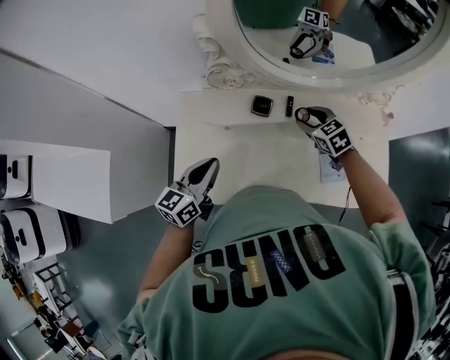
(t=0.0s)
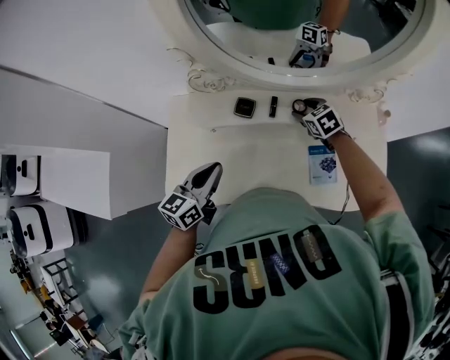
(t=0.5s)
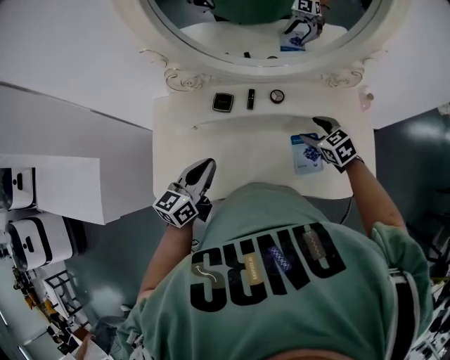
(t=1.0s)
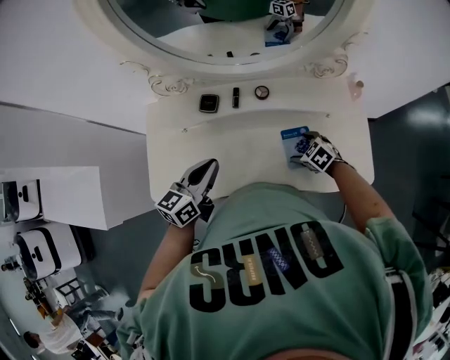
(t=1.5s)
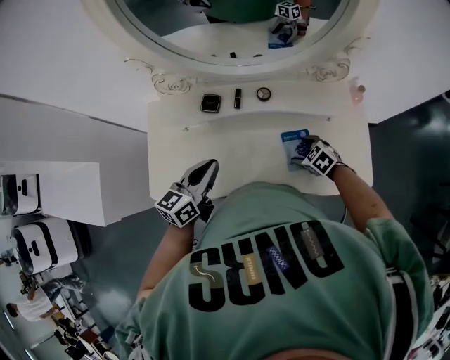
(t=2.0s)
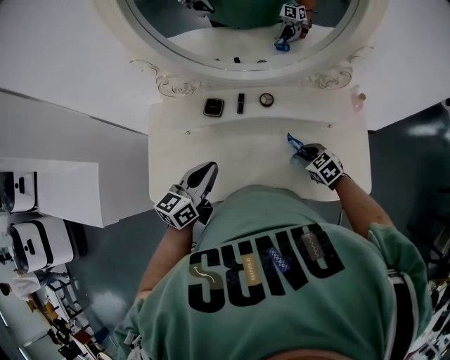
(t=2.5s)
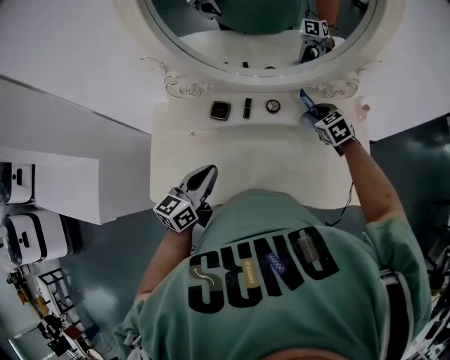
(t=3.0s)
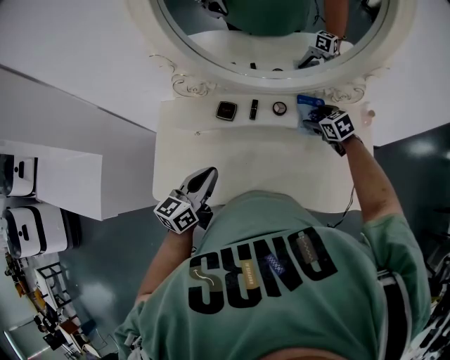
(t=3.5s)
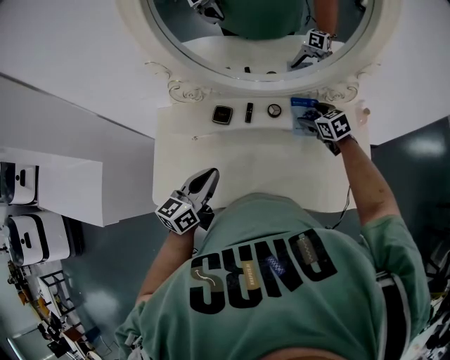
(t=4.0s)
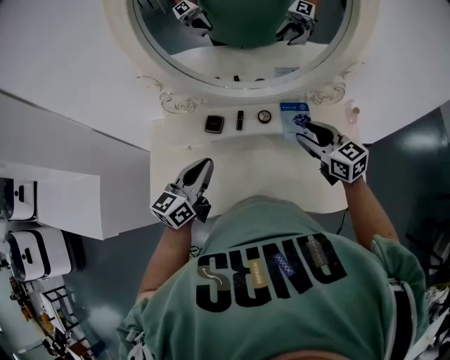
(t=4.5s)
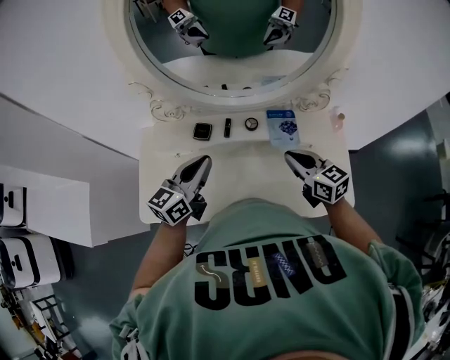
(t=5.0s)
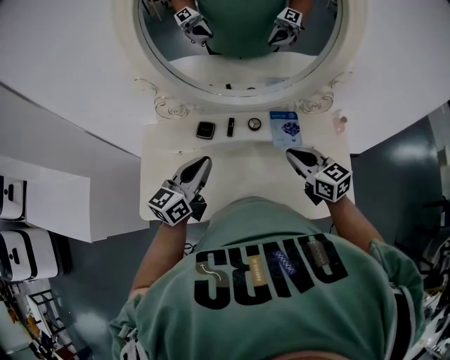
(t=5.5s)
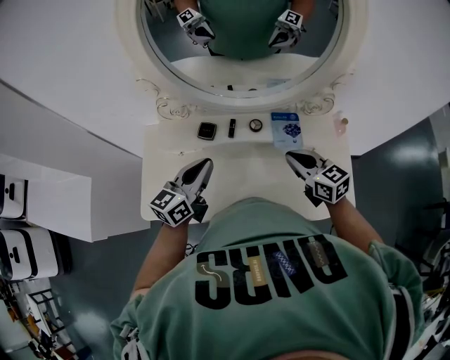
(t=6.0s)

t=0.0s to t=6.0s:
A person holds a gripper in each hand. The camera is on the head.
t=0.0s to t=2.0s: The left gripper is displaced to the right by about 15 cm, while the right gripper travels backward, to the right and downward by about 25 cm, and opens up.
t=2.0s to t=4.0s: The right gripper is displaced forward and upward by about 20 cm, swivels some 20 degrees, and closes, then reopens.
t=4.0s to t=6.0s: The right gripper heads backward and upward, covering approximately 20 cm, turns by about 30 degrees, and closes up. Meanwhile the left gripper is displaced upward by approximately 5 cm.

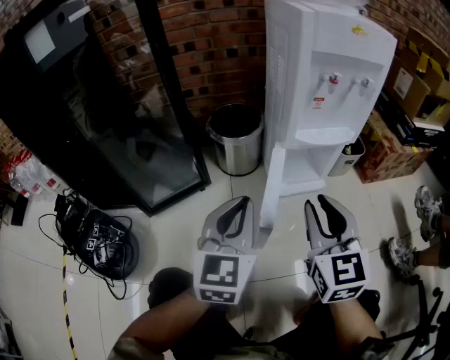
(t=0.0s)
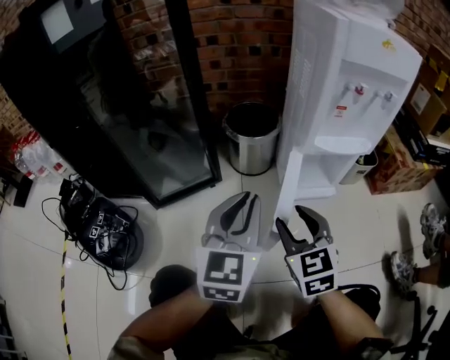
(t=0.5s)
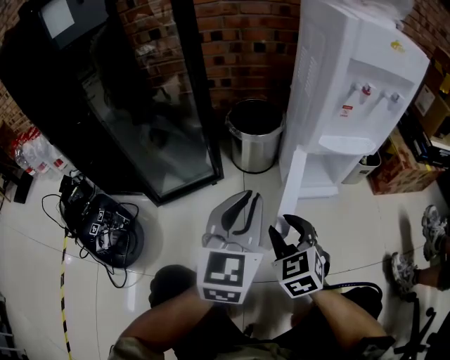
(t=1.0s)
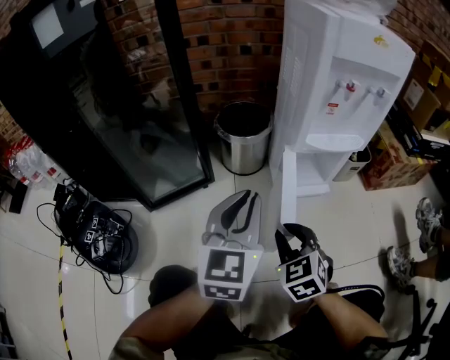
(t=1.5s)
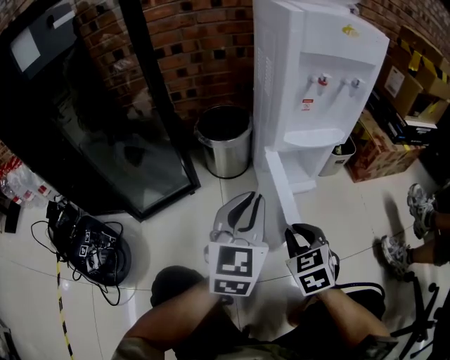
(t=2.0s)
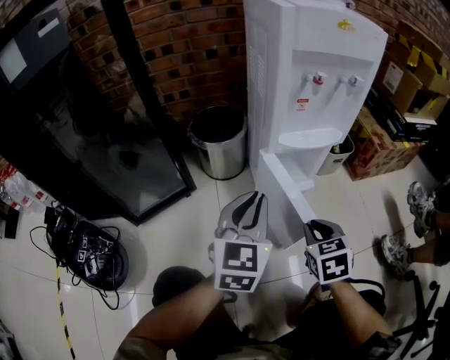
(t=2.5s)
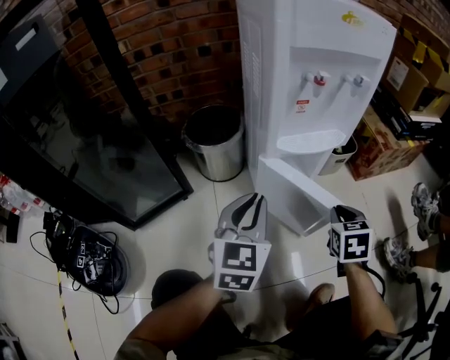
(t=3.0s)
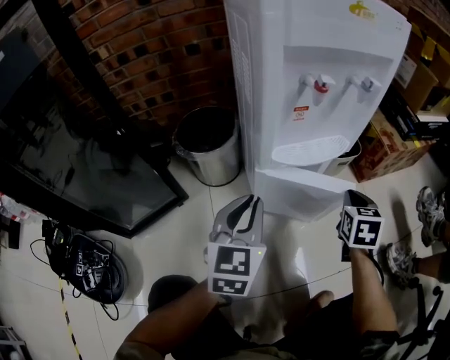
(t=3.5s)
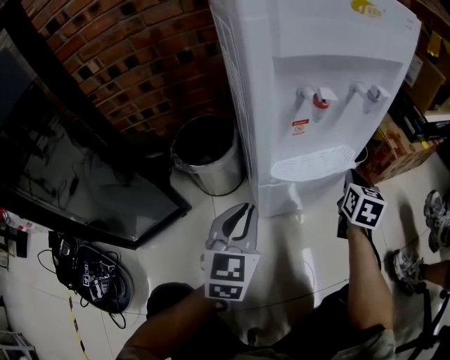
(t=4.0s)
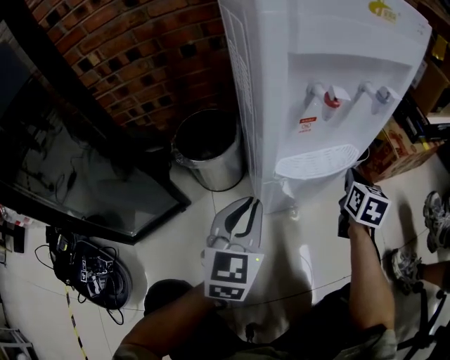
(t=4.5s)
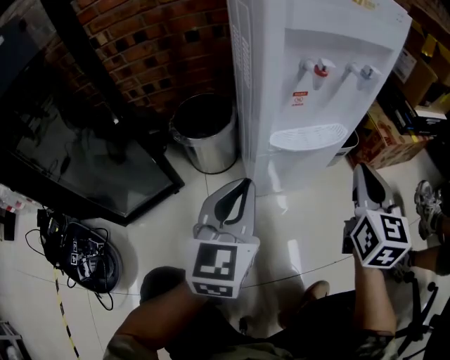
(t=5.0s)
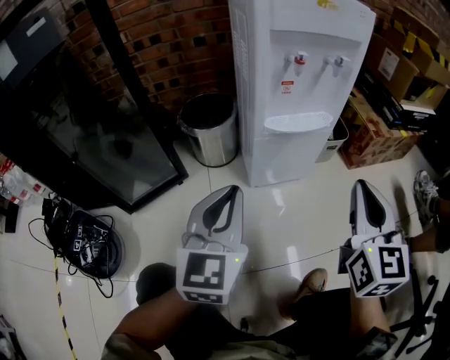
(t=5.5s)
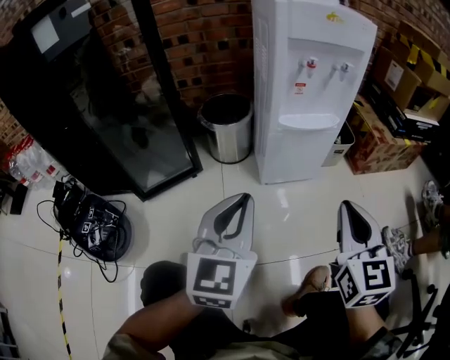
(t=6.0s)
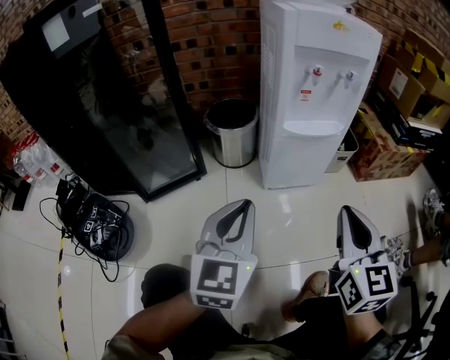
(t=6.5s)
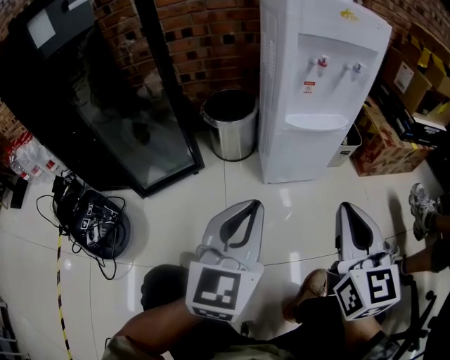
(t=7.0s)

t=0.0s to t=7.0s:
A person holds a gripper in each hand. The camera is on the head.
t=0.0s to t=2.0s: The left gripper moves some 5 cm. Meanwhile the right gripper moves downward, some 15 cm, changes its angle by approximately 30 degrees, and opens, then closes once more.
t=2.0s to t=3.5s: The right gripper heads forward and to the right, covering some 30 cm, and rotates about 30 degrees; the left gripper heads forward and downward, covering some 15 cm.
t=3.5s to t=5.0s: The right gripper travels upward by approximately 15 cm, and swivels roughly 30 degrees; the left gripper travels upward by approximately 5 cm.
t=5.0s to t=7.0s: Both grippers travel together backward, some 20 cm.

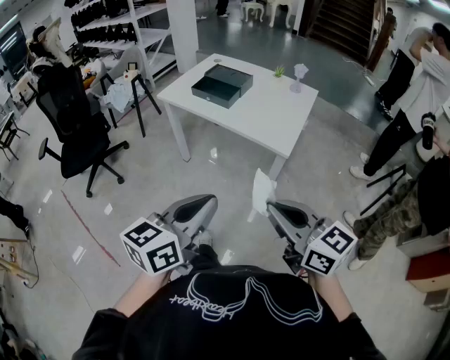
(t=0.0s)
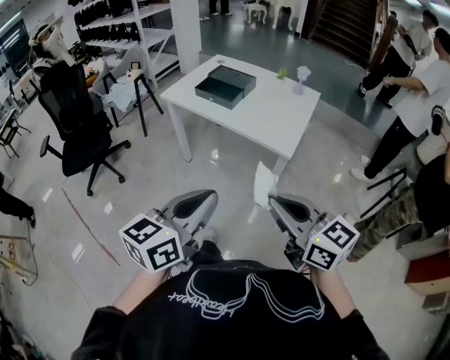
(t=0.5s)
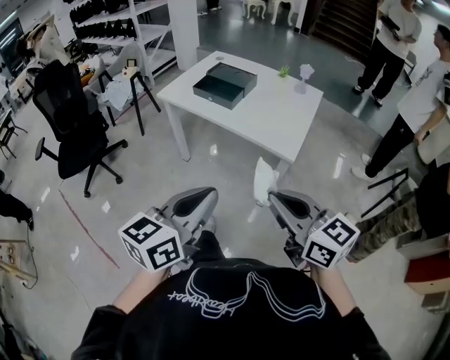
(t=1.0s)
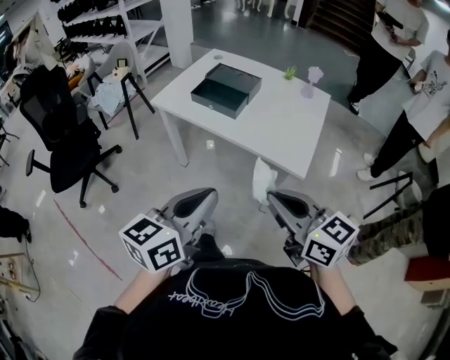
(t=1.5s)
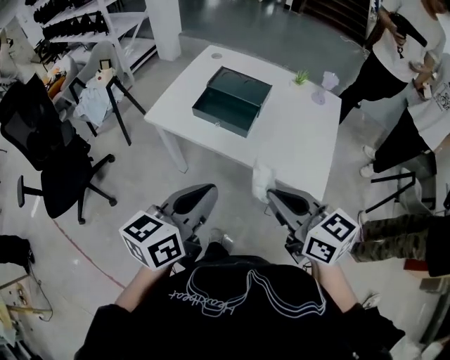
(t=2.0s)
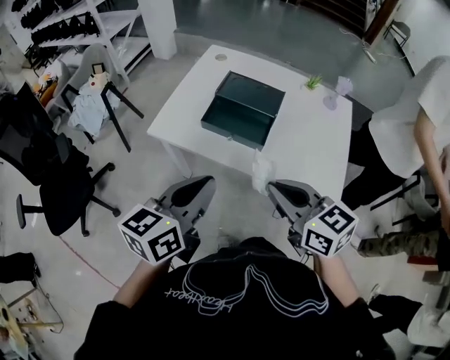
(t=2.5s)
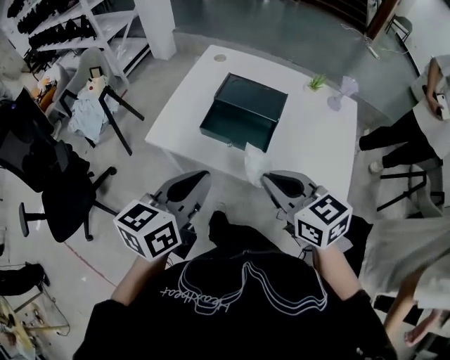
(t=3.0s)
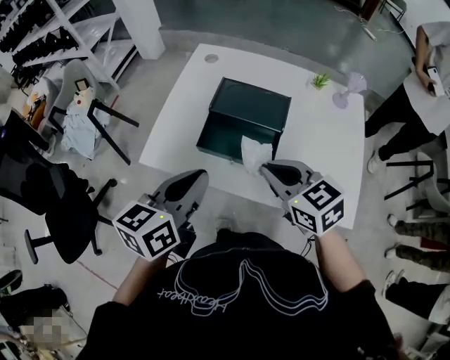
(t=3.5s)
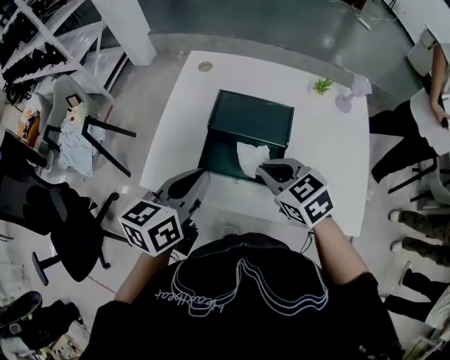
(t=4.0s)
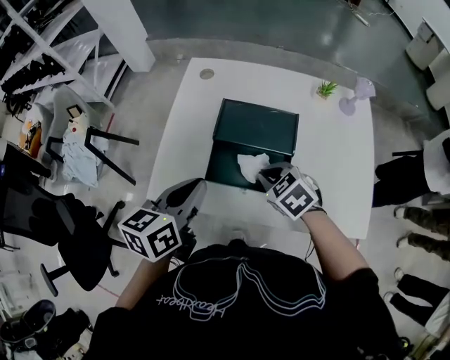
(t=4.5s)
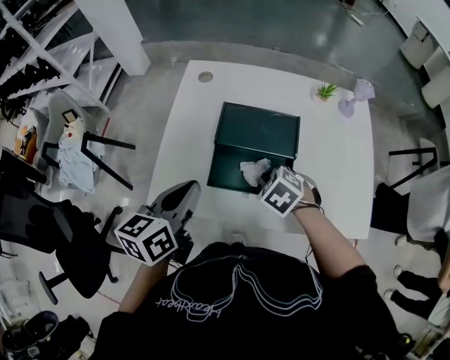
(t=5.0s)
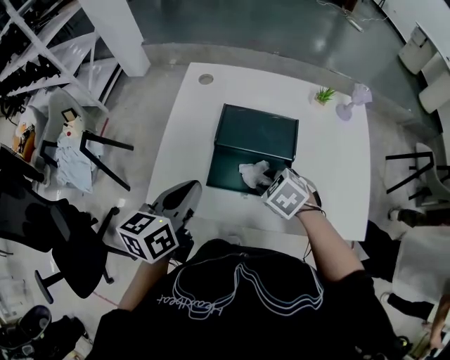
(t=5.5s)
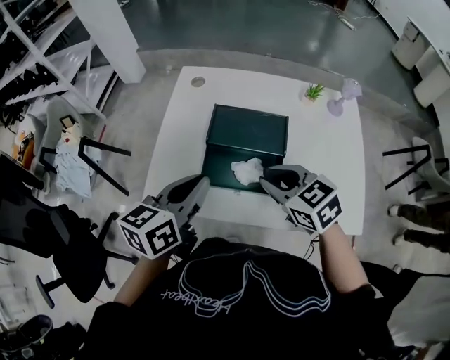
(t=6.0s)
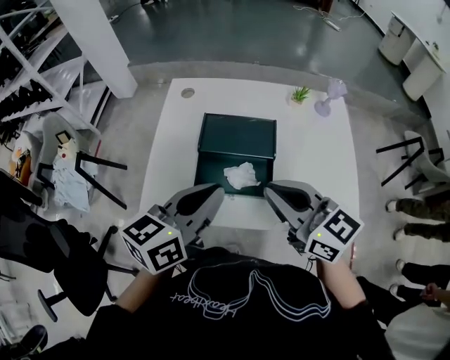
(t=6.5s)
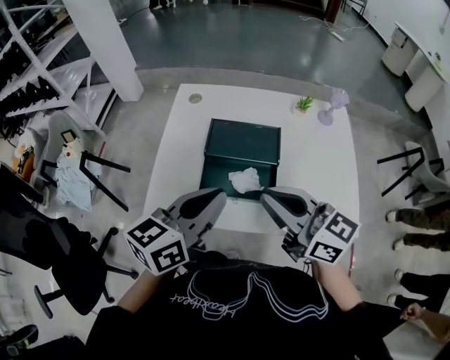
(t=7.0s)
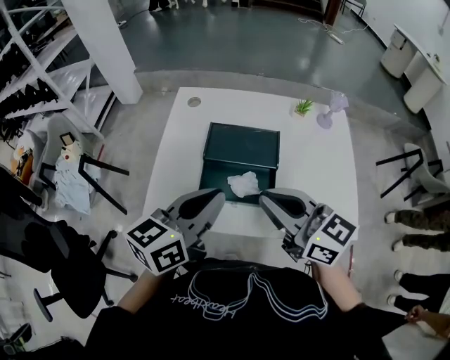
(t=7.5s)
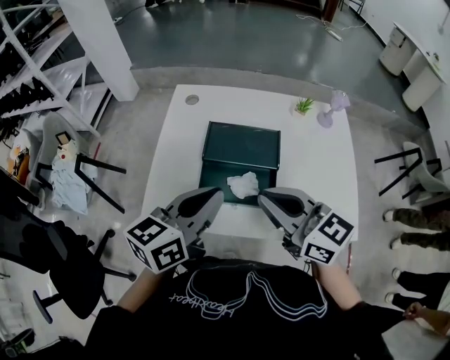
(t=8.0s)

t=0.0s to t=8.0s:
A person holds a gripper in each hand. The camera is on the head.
t=0.0s to t=2.0s: Both grippers move forward, roughly 30 cm.
t=2.0s to t=4.0s: The left gripper goes about 30 cm forward. Meanwhile the right gripper shifts some 35 cm forward and downward, and turns by some 30 degrees.
t=4.0s to t=6.0s: The right gripper reaches roughly 10 cm downward, then returns, and opens.
t=6.0s to t=8.0s: The right gripper travels upward by some 10 cm, rotates about 30 degrees, and closes its fingers. Meanwhile the left gripper ends up approximately 5 cm from where it was.

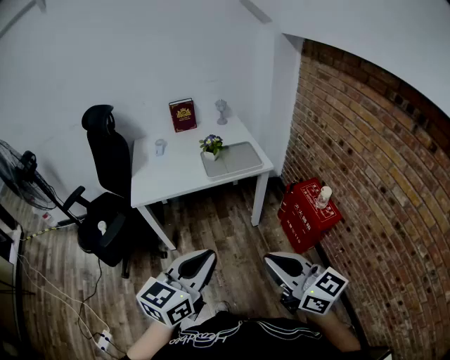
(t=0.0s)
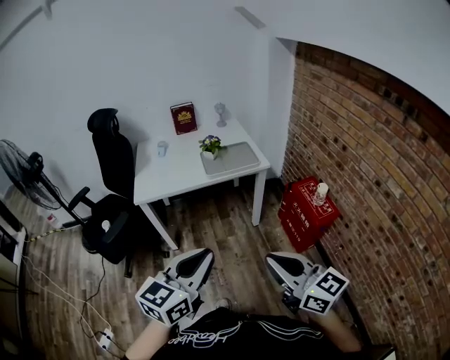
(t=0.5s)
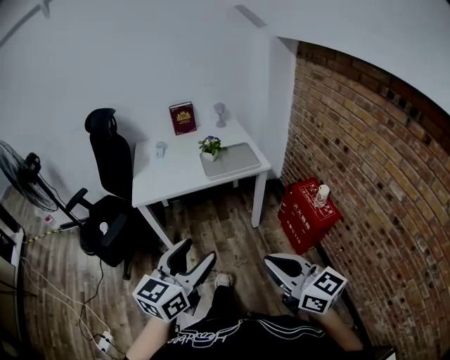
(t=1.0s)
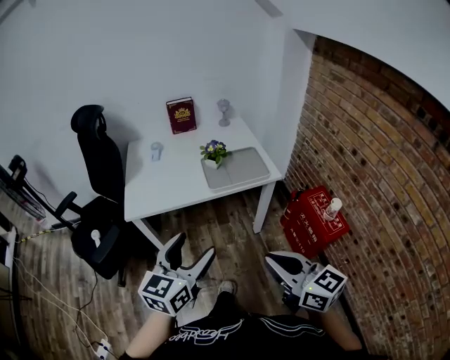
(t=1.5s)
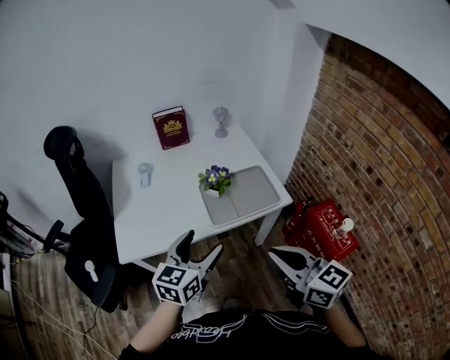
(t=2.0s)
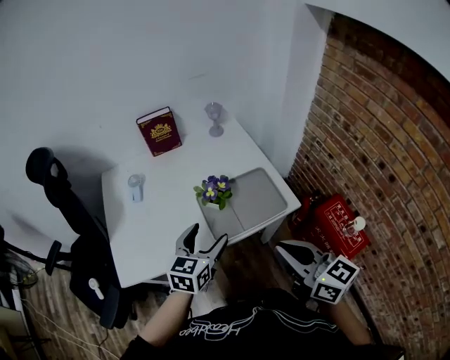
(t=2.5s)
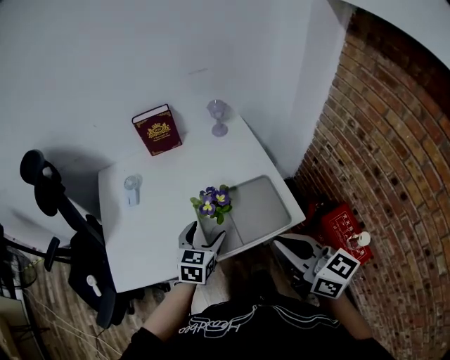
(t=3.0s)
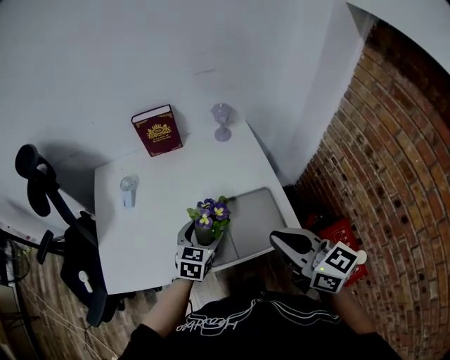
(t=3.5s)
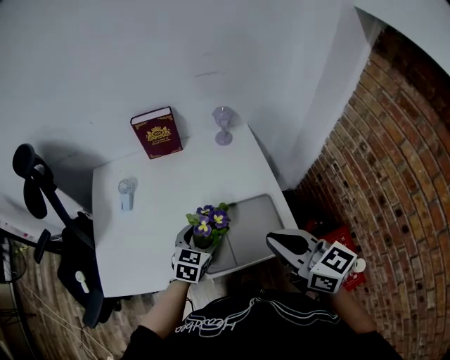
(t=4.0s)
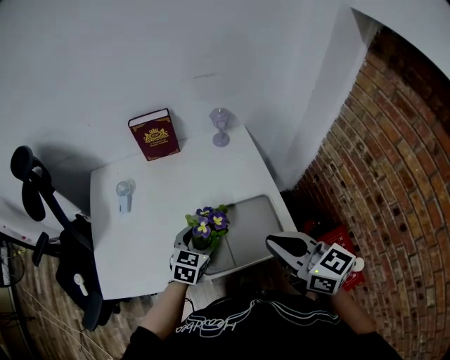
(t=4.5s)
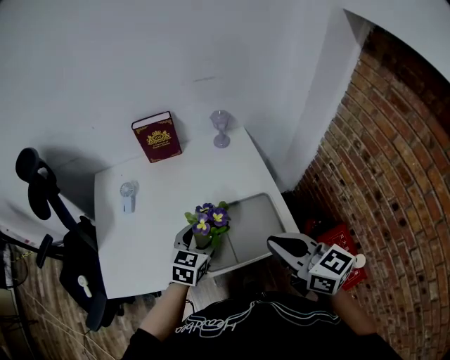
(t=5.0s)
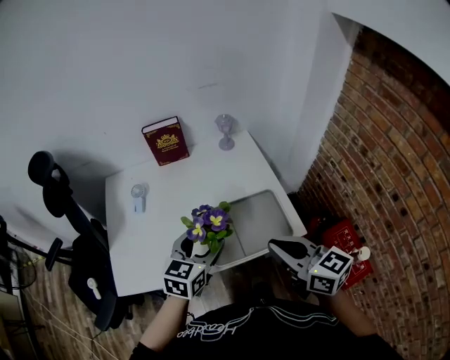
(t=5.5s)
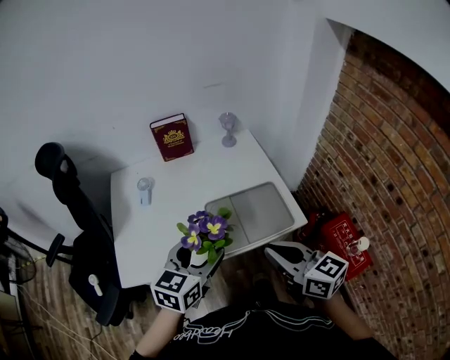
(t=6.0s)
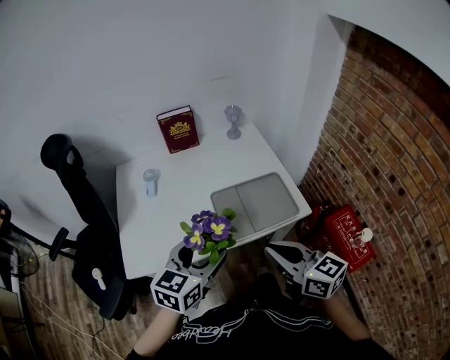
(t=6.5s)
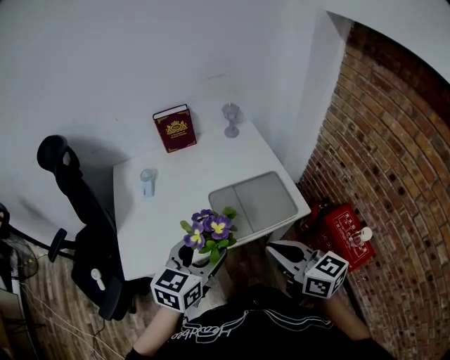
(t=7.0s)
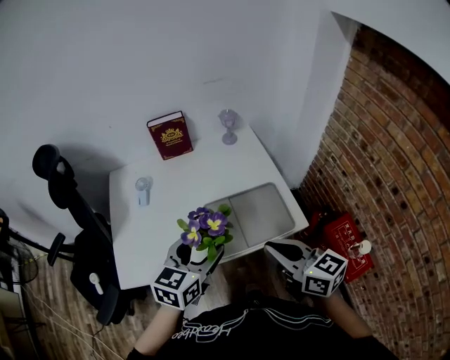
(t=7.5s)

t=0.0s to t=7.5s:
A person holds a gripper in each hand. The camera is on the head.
t=0.0s to t=2.0s: The two grippers go about 35 cm forward. The left gripper opens up.
t=2.0s to t=4.0s: The right gripper travels forward by some 25 cm. The left gripper is displaced forward and downward by approximately 30 cm, and rotates about 20 degrees.
t=4.0s to t=5.5s: The left gripper moves upward and backward, roughly 15 cm. Meanwhile the right gripper shifts about 5 cm backward.
t=5.5s to t=7.5s: The left gripper goes about 5 cm backward. The right gripper moves some 10 cm backward and comes back.
